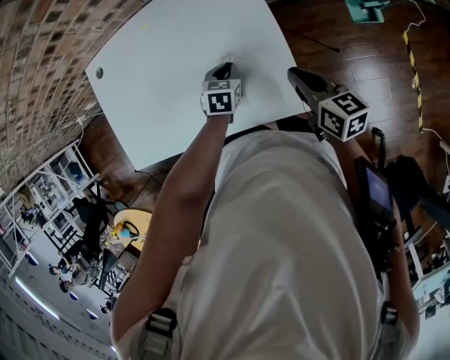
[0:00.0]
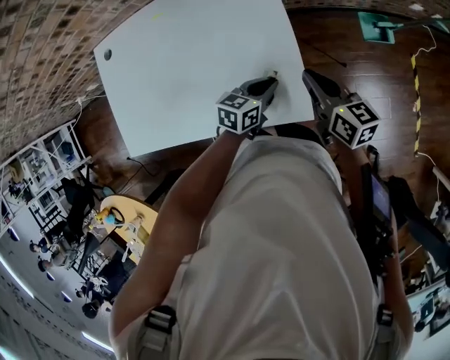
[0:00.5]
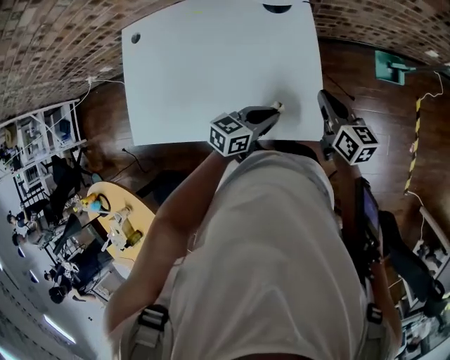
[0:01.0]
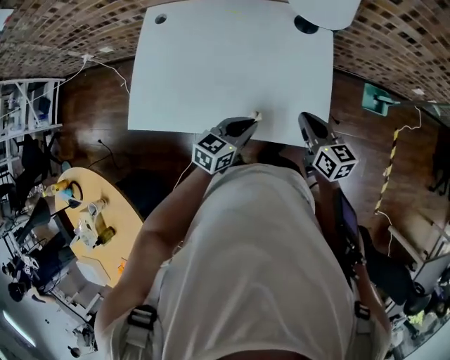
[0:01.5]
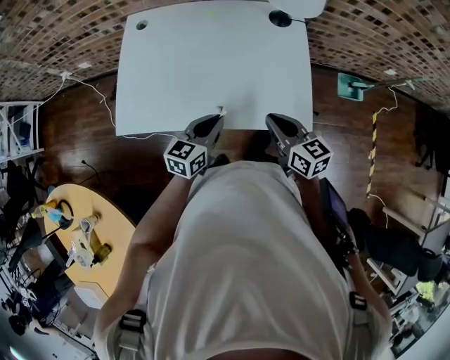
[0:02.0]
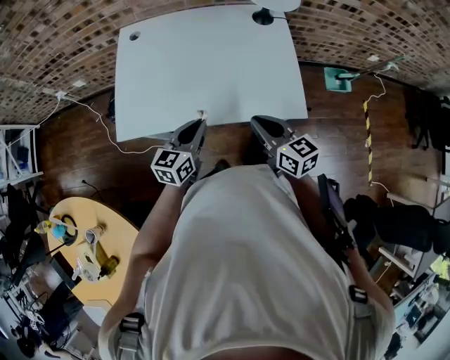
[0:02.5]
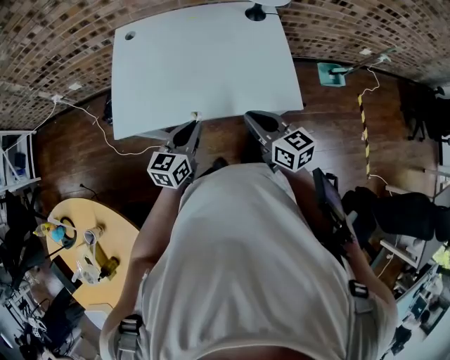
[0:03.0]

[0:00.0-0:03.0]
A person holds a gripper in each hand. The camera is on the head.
0.0 to 1.5 s: The left gripper heads backward, upward and to the left, covering approximately 20 cm, and changes its angle by some 30 degrees. The right gripper shifts about 10 cm to the left.
1.5 to 3.0 s: The left gripper travels to the left and backward by roughly 20 cm. The right gripper moves backward and to the left, approximately 20 cm.

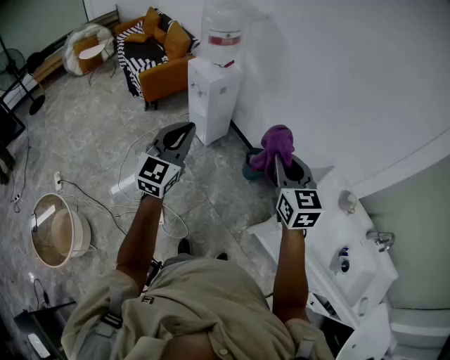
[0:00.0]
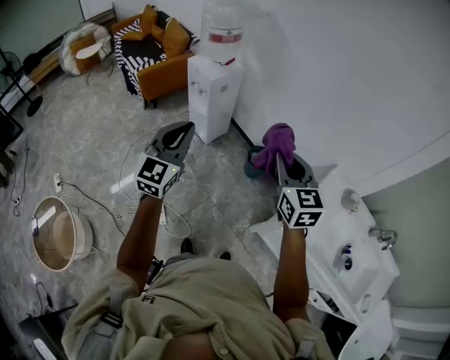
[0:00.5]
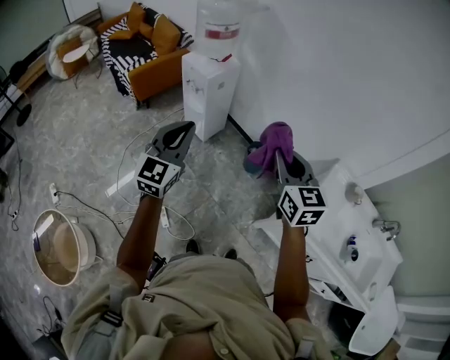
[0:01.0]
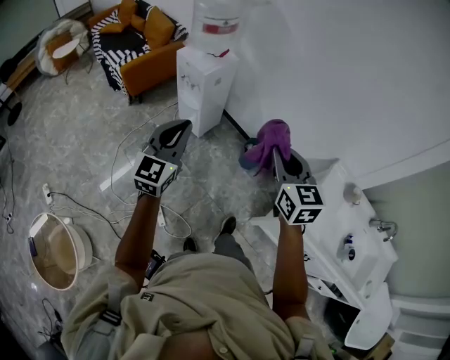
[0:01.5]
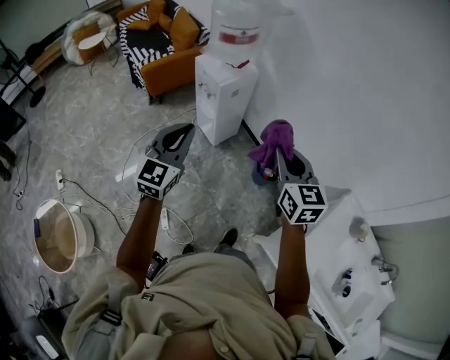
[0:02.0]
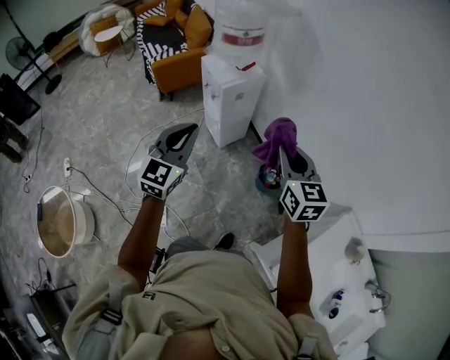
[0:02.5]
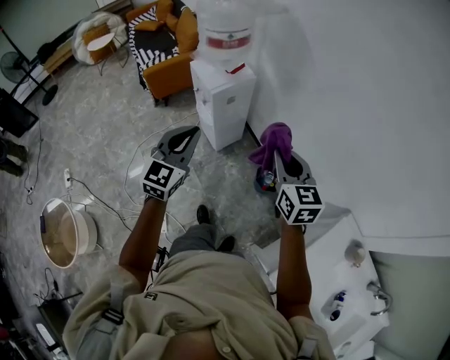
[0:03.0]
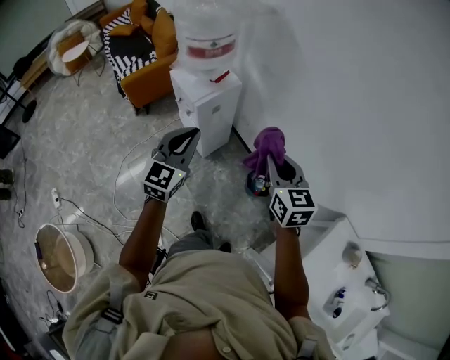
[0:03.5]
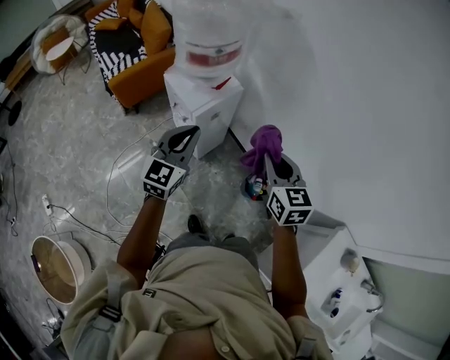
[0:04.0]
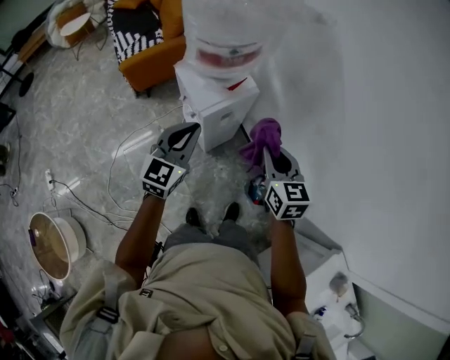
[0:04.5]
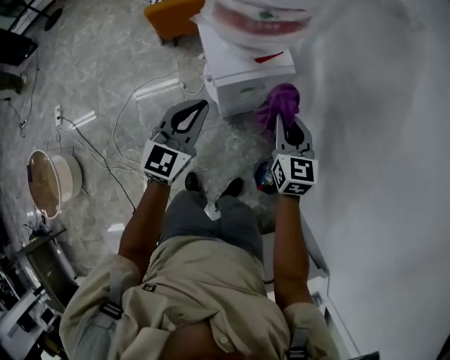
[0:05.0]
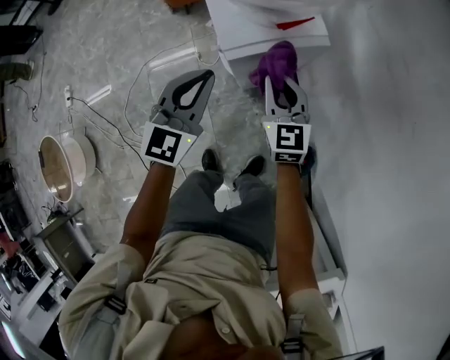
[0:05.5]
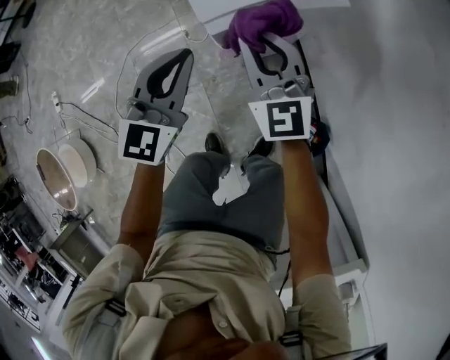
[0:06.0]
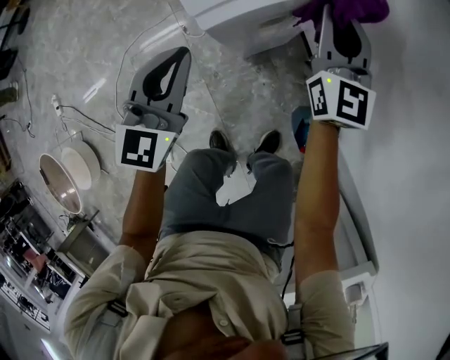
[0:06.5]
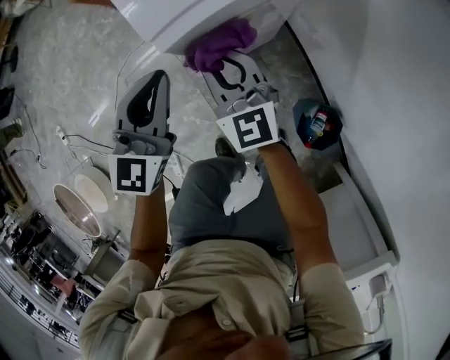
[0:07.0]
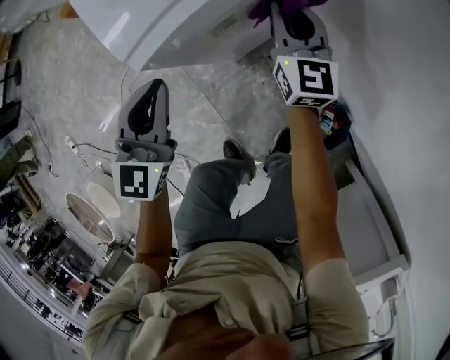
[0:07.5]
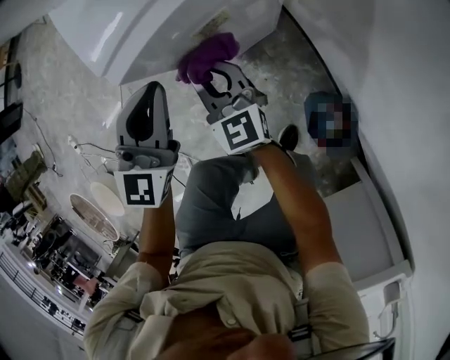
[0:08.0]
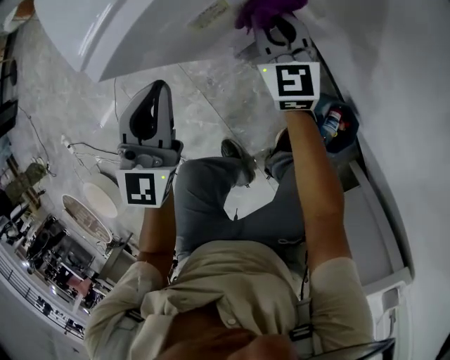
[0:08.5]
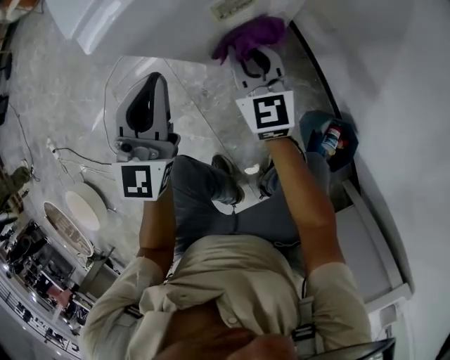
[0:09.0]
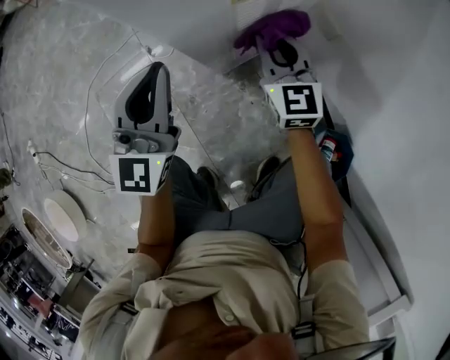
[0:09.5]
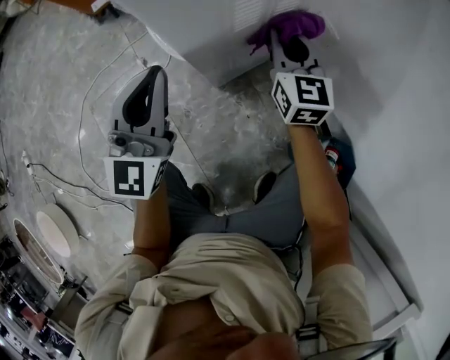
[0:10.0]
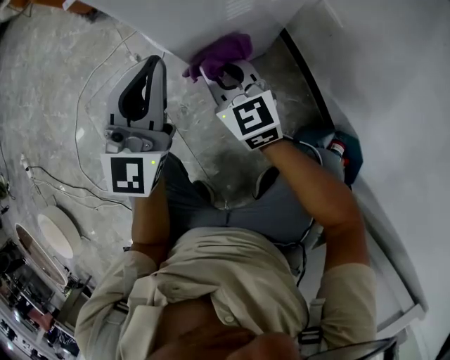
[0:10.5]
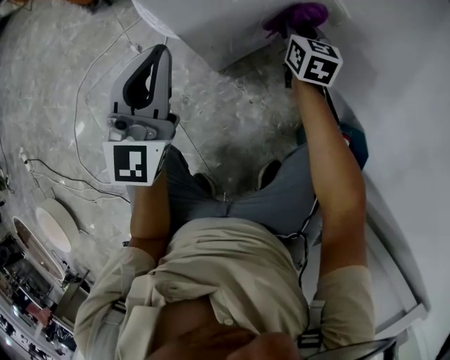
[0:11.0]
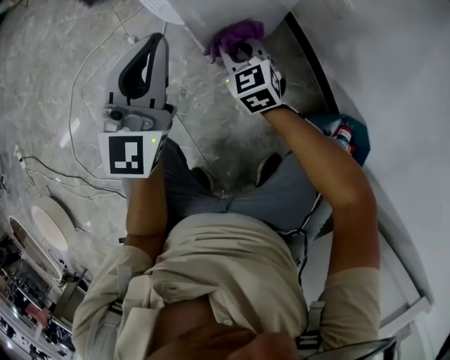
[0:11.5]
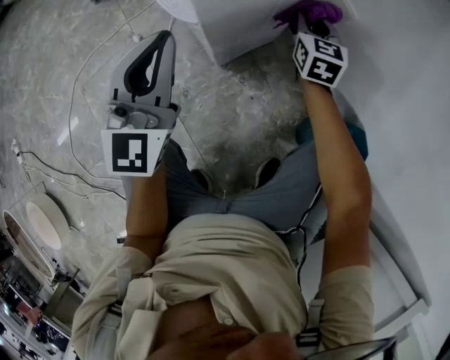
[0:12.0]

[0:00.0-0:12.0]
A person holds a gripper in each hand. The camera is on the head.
0.0 to 2.0 s: The left gripper is displaced forward and to the left by roughly 20 cm. The right gripper heads forward, covering approximately 20 cm.
2.0 to 4.0 s: The grippers both shift forward by about 30 cm.
4.0 to 6.0 s: The right gripper moves downward, forward and to the left, roughly 40 cm, and swivels about 30 degrees, while the left gripper travels downward and forward by some 35 cm, and turns by some 20 degrees.
6.0 to 8.0 s: The right gripper heads downward, covering approximately 20 cm; the left gripper goes roughly 10 cm downward.
8.0 to 10.0 s: The right gripper is displaced downward, to the right and forward by about 20 cm. Meanwhile the left gripper goes some 15 cm downward.
10.0 to 12.0 s: The right gripper swings left and right, some 20 cm each way, with 3 reversals.

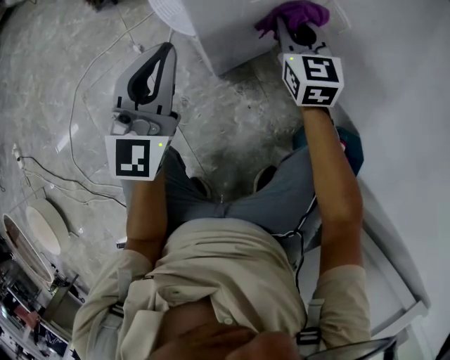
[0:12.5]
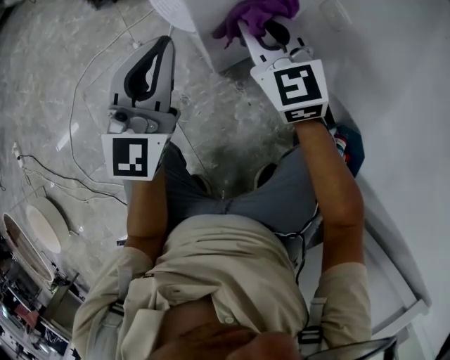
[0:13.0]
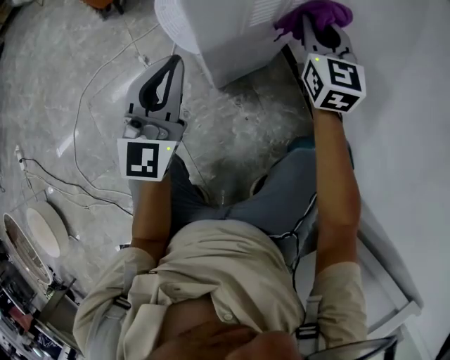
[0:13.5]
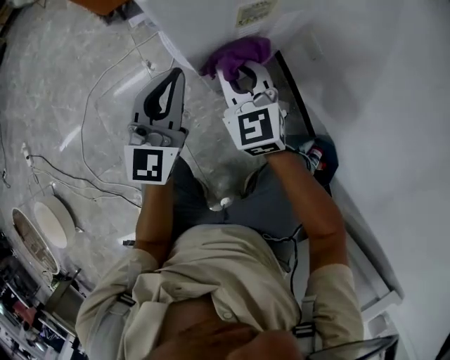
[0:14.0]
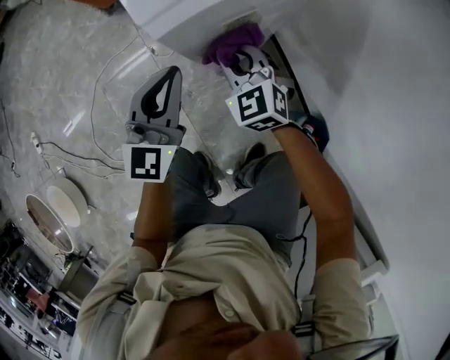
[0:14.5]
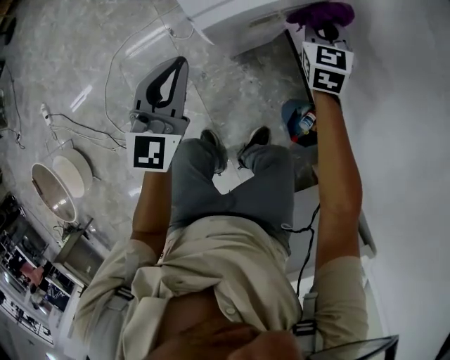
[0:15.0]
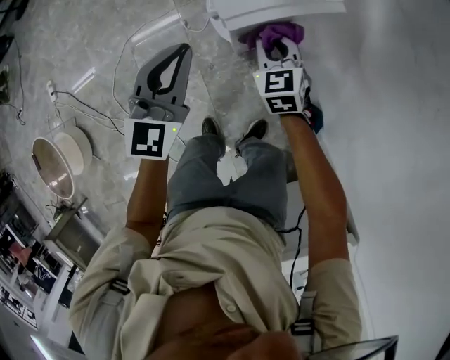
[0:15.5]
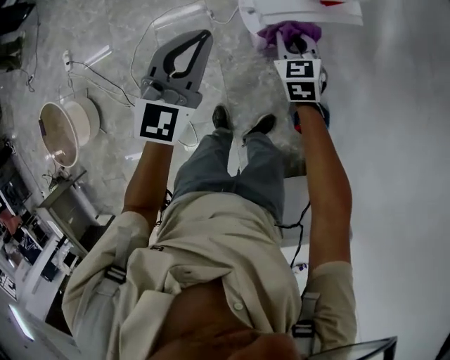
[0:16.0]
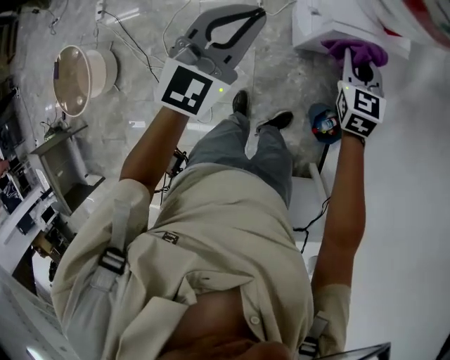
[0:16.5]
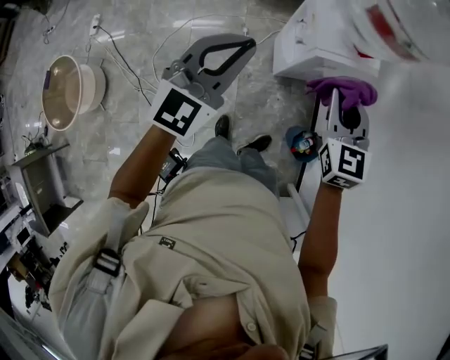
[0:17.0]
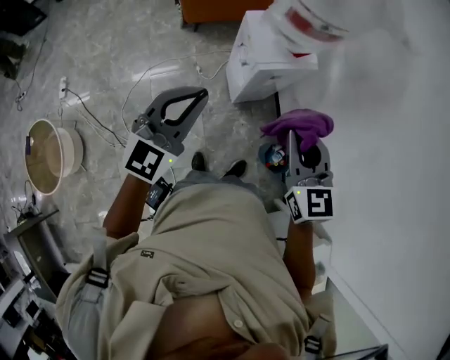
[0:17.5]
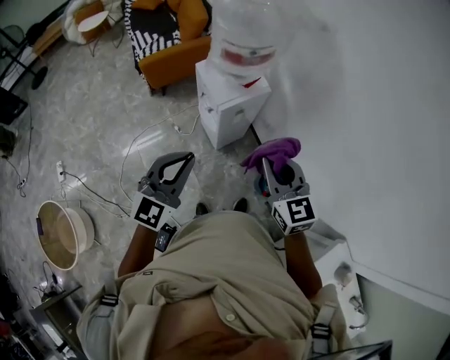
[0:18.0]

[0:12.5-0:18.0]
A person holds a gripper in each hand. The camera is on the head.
12.5 to 14.5 s: The right gripper travels upward and to the left by some 20 cm, and rotates roughly 30 degrees, while the left gripper heads upward, covering roughly 15 cm.
14.5 to 16.0 s: The grippers both shift upward by about 20 cm.
16.0 to 18.0 s: The left gripper goes about 30 cm upward and backward, and swivels about 20 degrees. Meanwhile the right gripper moves upward and backward, about 50 cm, and changes its angle by about 20 degrees.

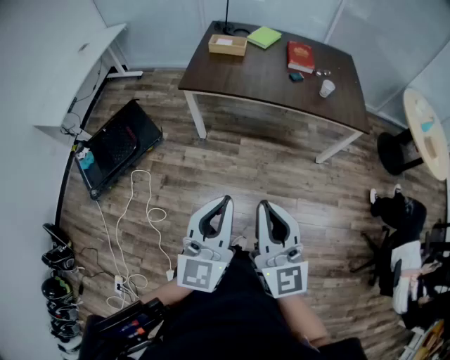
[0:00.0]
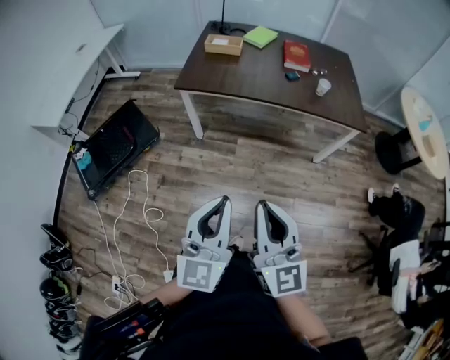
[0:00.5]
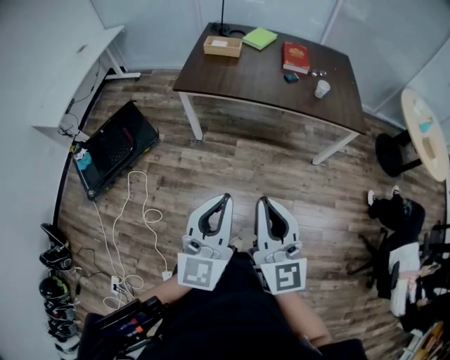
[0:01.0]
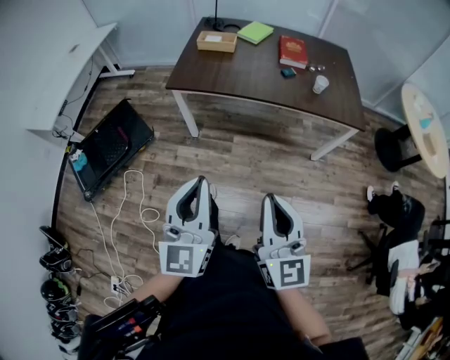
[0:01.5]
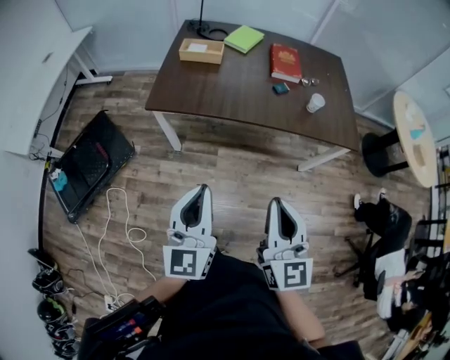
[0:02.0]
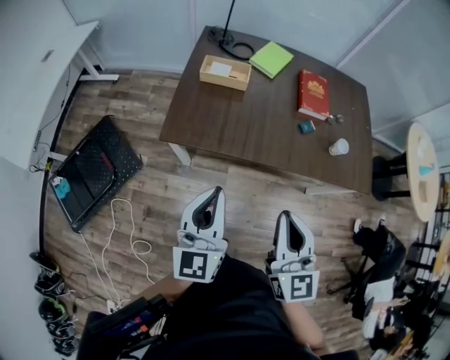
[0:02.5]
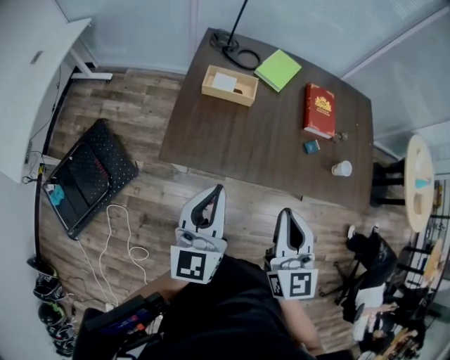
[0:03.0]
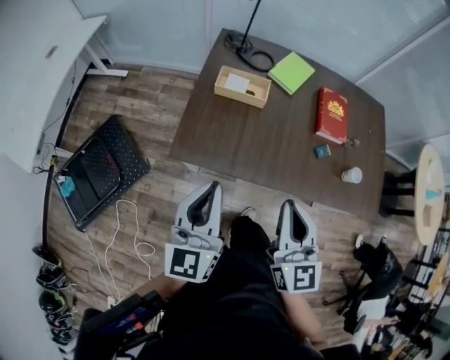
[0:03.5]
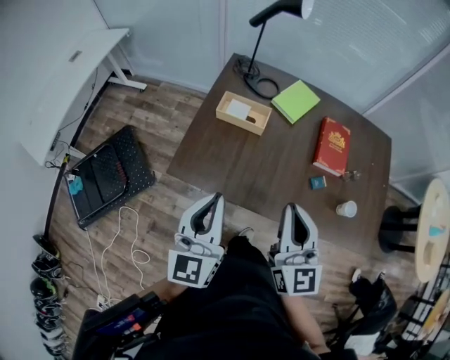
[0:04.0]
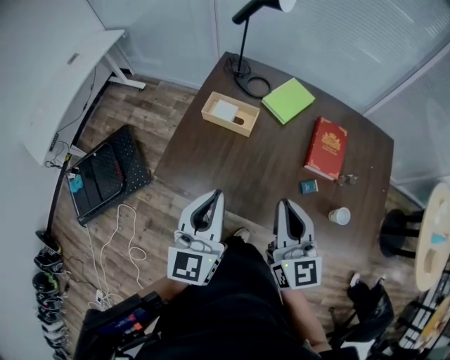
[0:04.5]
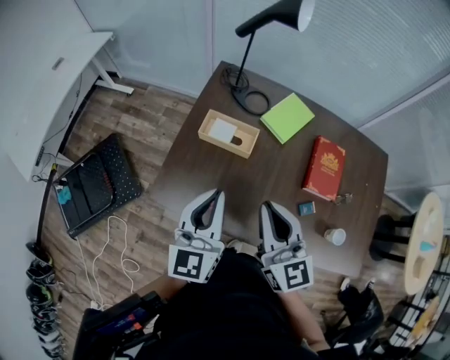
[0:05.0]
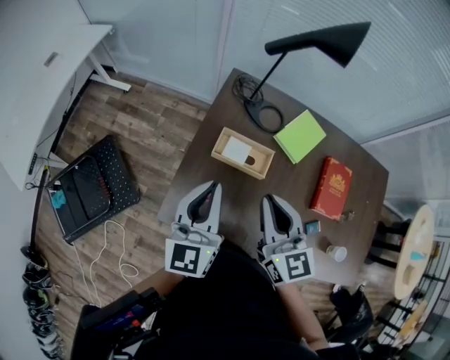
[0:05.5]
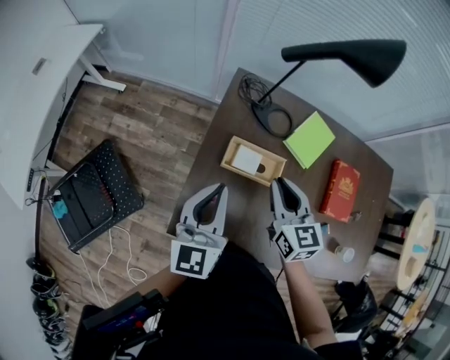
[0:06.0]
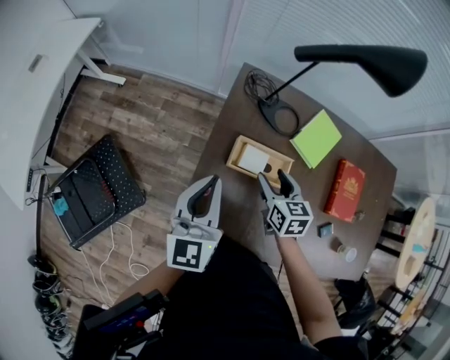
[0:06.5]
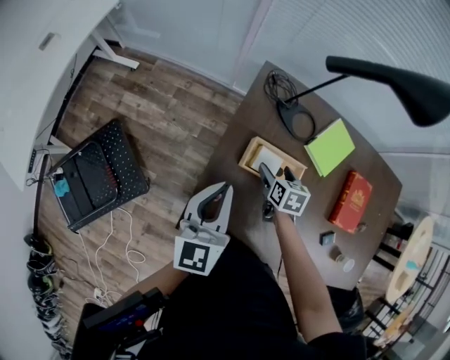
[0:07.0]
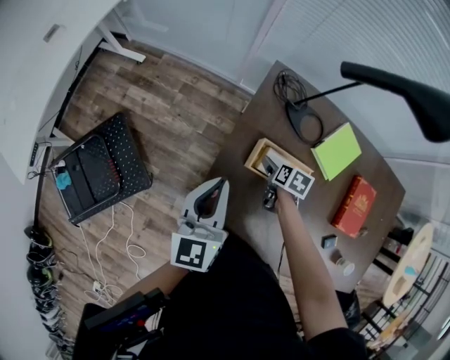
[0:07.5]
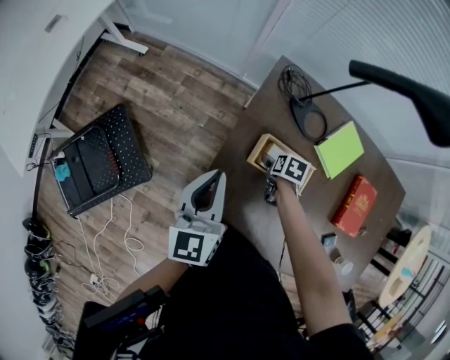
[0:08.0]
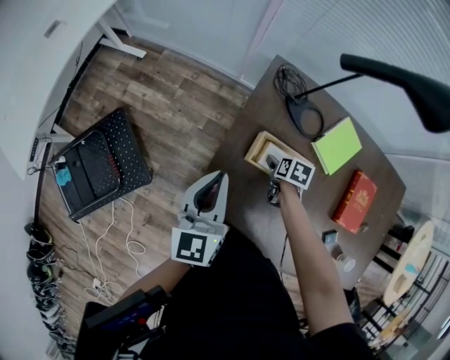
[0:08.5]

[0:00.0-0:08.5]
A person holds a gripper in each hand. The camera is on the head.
0.0 to 2.0 s: The two grippers go roughly 20 cm forward.
2.0 to 4.0 s: The two grippers go about 35 cm forward.
4.0 to 6.5 s: The right gripper is displaced forward and downward by about 40 cm, angles its fingers downward, by some 40 degrees, and opens; the left gripper goes roughly 35 cm forward.
6.5 to 8.5 s: The right gripper moves downward, some 15 cm, and tips its fingers downward by some 30 degrees.
